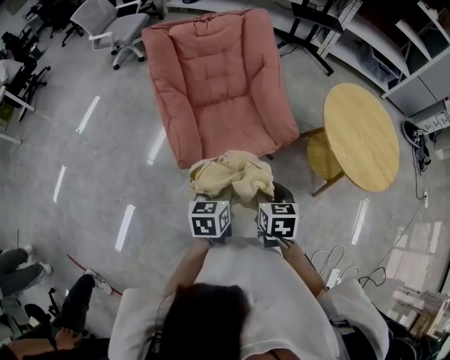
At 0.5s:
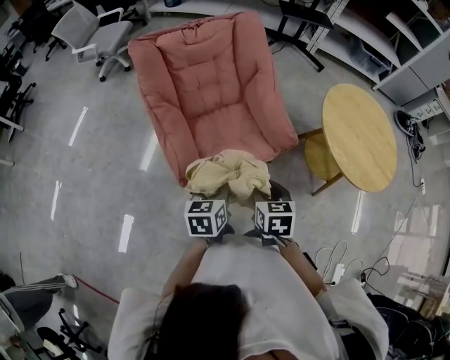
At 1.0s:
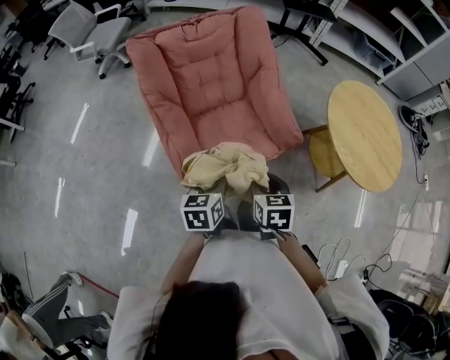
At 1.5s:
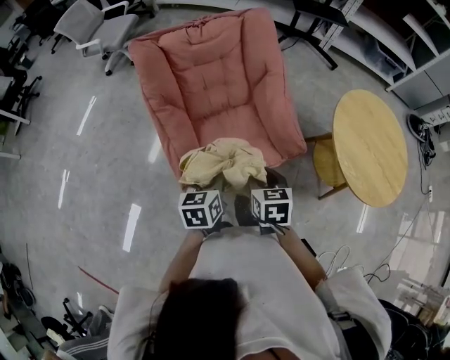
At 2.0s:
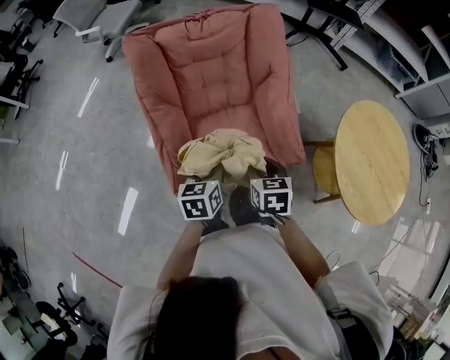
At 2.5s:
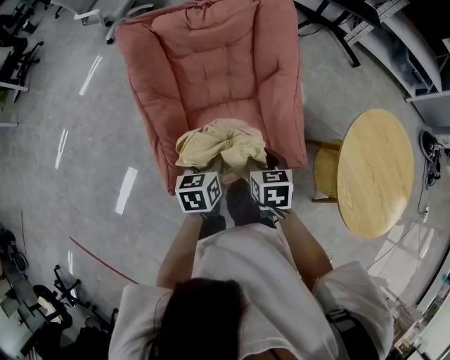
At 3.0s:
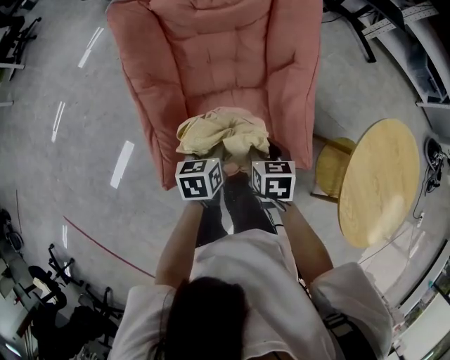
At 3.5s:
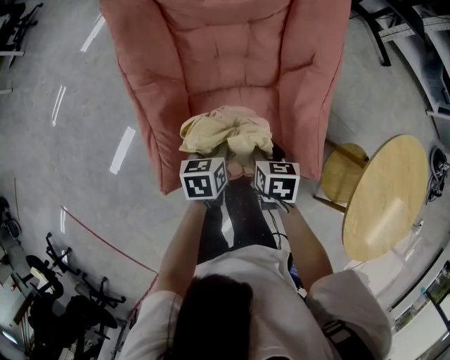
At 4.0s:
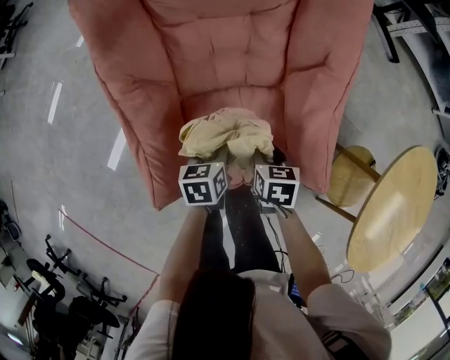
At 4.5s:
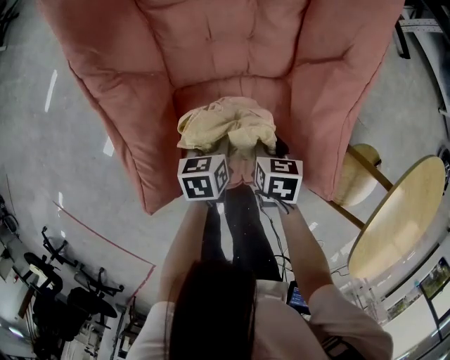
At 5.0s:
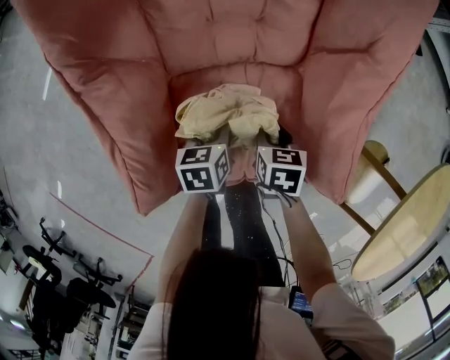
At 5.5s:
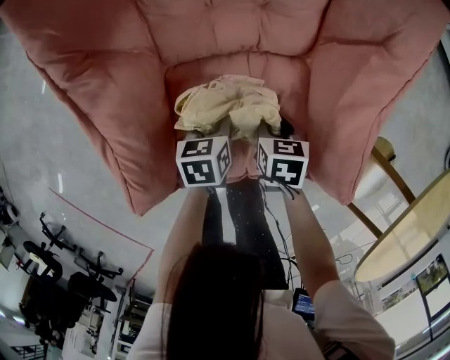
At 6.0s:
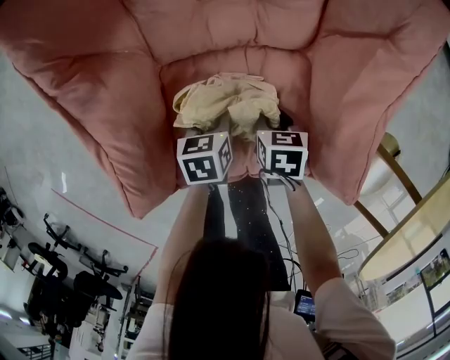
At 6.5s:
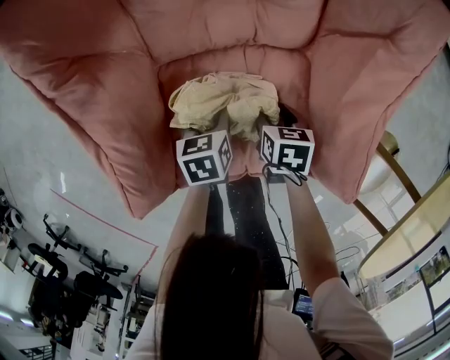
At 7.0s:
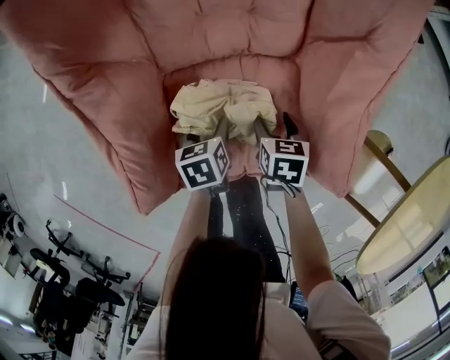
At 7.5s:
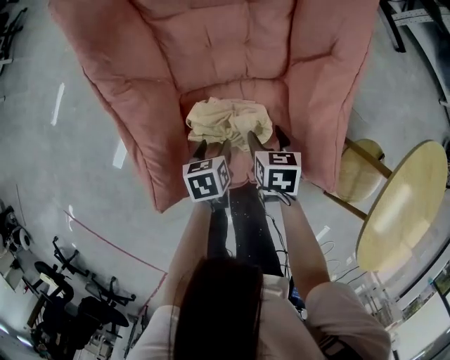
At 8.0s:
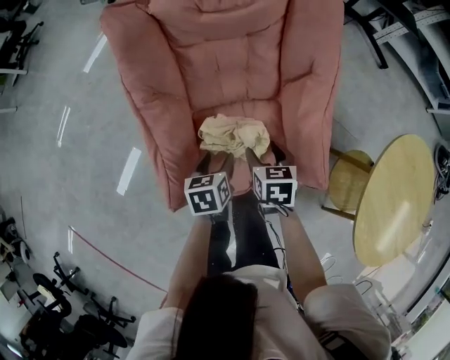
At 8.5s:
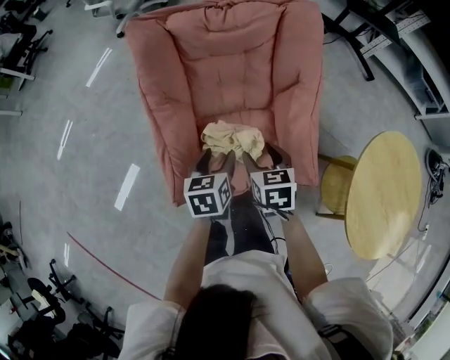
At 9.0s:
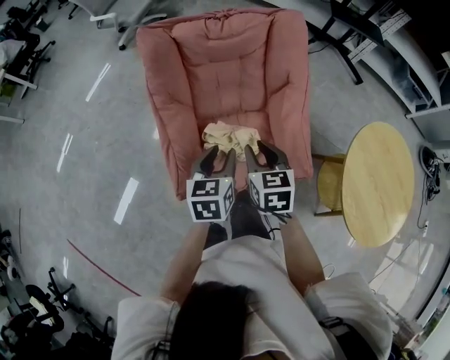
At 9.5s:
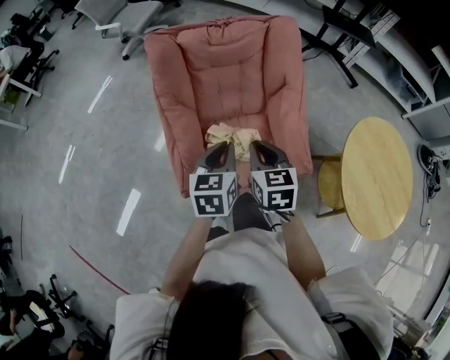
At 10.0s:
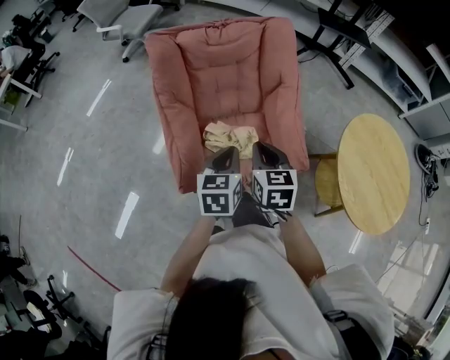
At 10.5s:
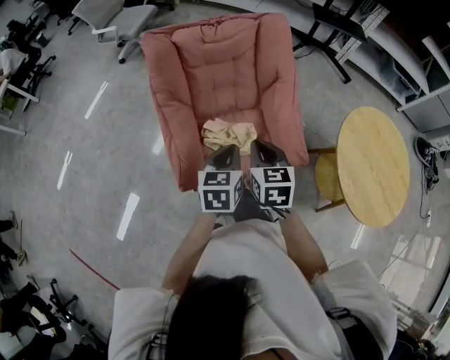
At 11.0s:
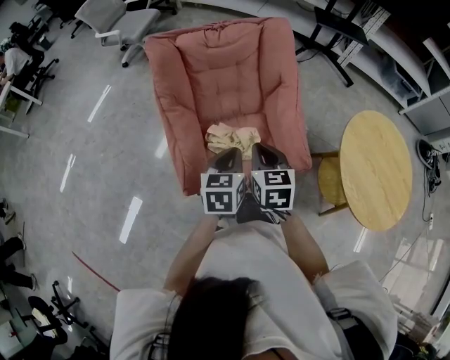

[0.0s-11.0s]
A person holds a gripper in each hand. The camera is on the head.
0.0s to 2.0s: The grippers both shift forward by approximately 25 cm.
2.0s to 3.5s: Both grippers travel together downward and forward, roughly 20 cm.
3.5s to 5.5s: The grippers both shift downward by some 25 cm.
5.5s to 7.5s: Both grippers travel together upward, some 10 cm. The right gripper opens. The left gripper opens.
7.5s to 9.0s: Both grippers move upward, about 30 cm. The left gripper turns by about 30 degrees, and closes. Meanwhile the right gripper turns by some 20 degrees, and closes.
9.0s to 11.0s: Both grippers travel together backward, approximately 5 cm. The left gripper closes. The right gripper closes.

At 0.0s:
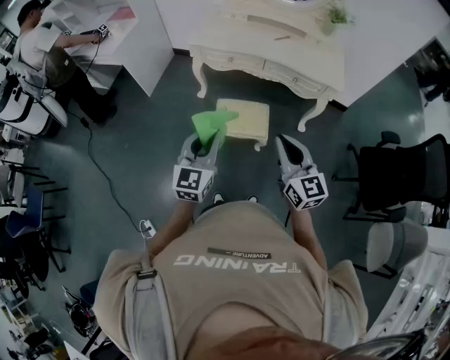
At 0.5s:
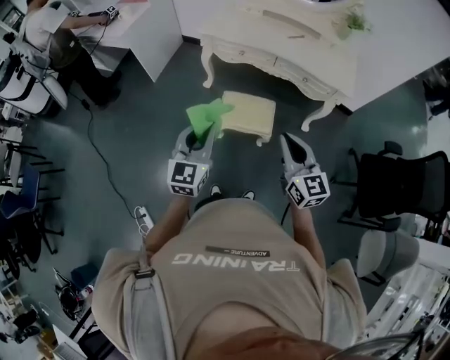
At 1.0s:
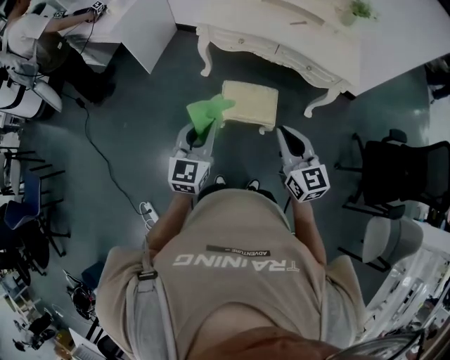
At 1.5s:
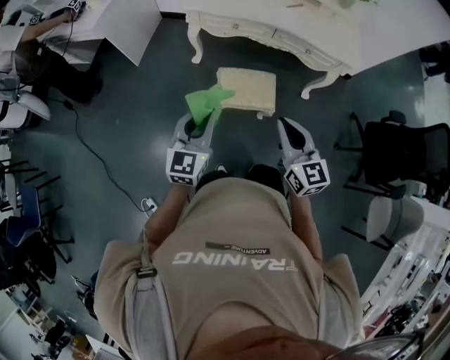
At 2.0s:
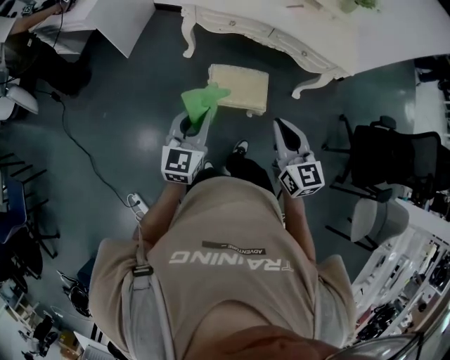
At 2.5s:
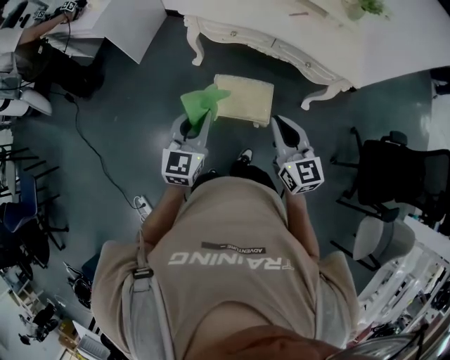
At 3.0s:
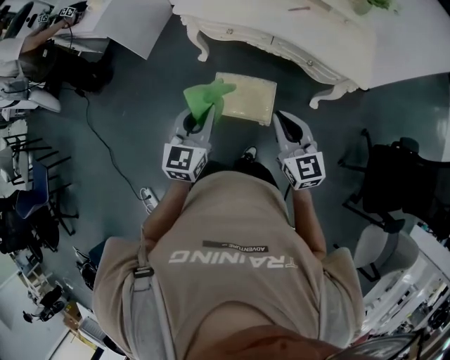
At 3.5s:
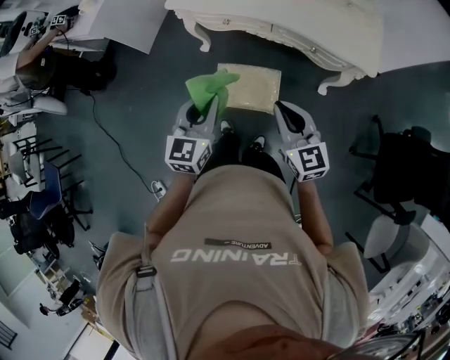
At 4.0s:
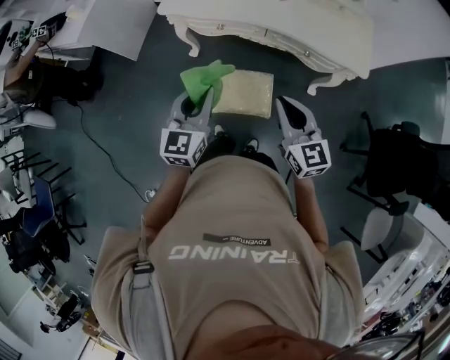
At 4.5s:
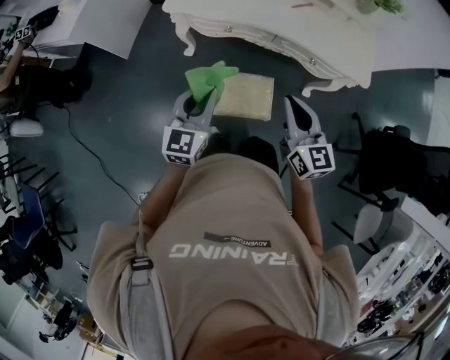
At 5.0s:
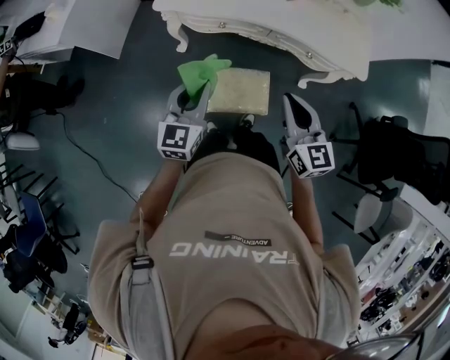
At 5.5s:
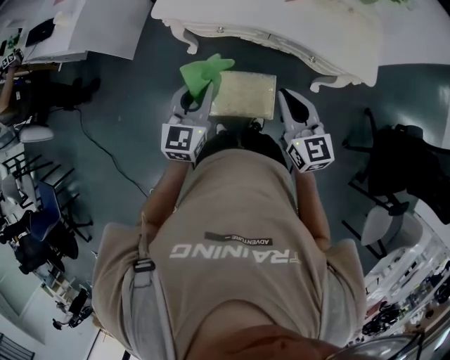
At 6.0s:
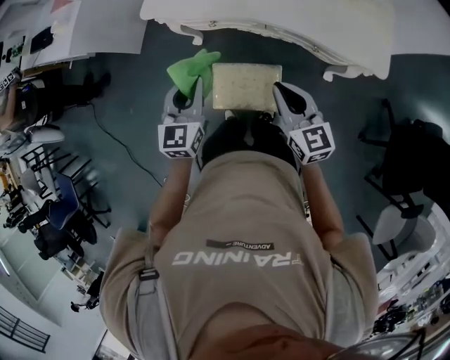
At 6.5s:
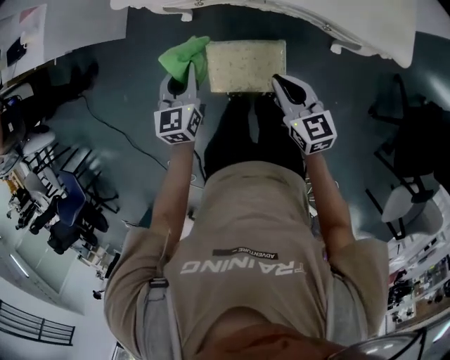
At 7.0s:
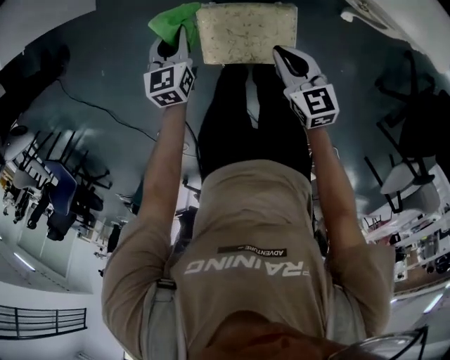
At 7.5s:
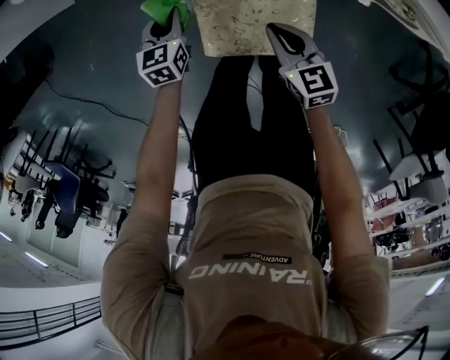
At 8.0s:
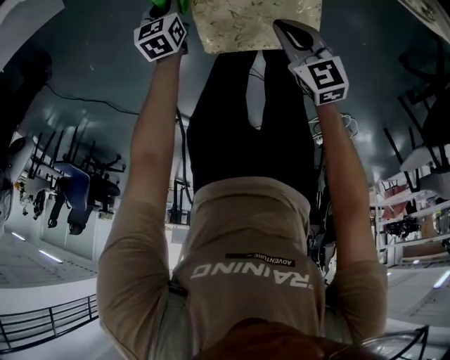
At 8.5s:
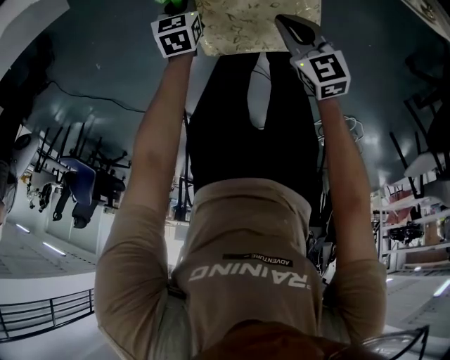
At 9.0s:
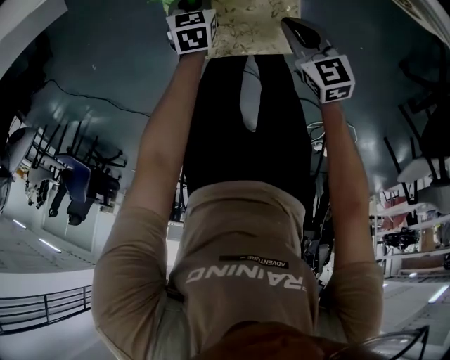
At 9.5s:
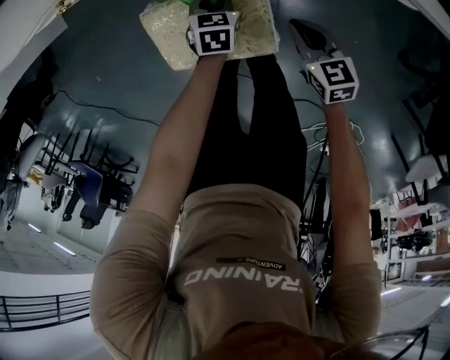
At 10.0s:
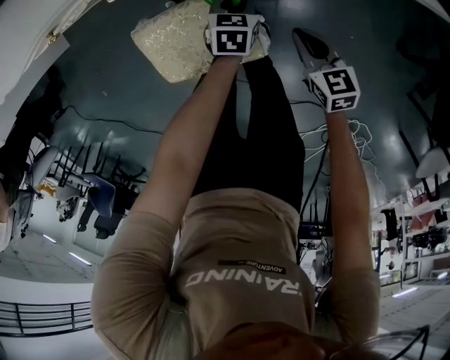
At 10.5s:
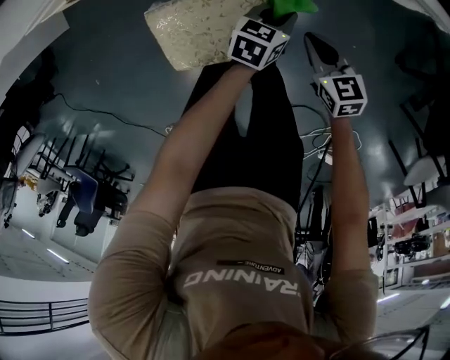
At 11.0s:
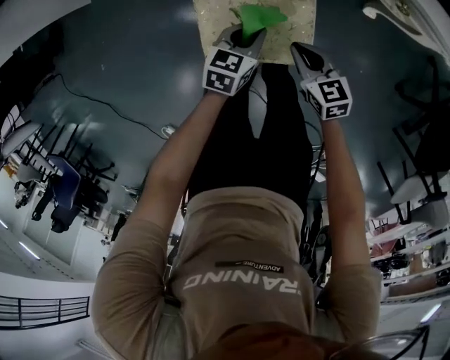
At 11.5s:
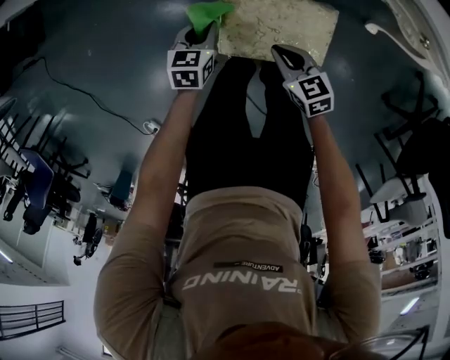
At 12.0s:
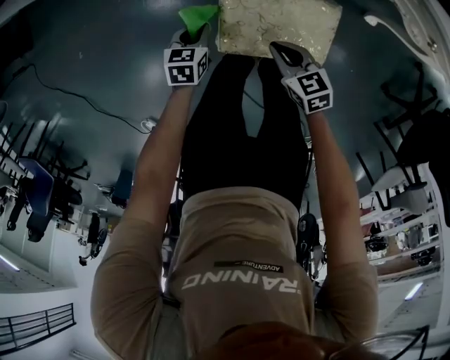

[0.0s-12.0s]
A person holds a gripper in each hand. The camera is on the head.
0.0s to 2.0s: The right gripper heads forward, to the left and downward, covering roughly 15 cm, while the left gripper heads forward, downward and to the left, covering approximately 15 cm.
2.0s to 4.0s: Both grippers move forward and to the right, roughly 25 cm.
4.0s to 6.0s: Both grippers travel together forward and downward, roughly 15 cm.
6.0s to 8.0s: Both grippers travel together downward, some 50 cm. The right gripper rotates about 30 degrees. Meanwhile the left gripper angles its fingers downward, by about 40 degrees.
8.0s to 10.0s: The right gripper travels to the right by some 25 cm. The left gripper moves to the right, roughly 40 cm, and changes its angle by roughly 20 degrees.
10.0s to 12.0s: The right gripper shifts by roughly 35 cm, and rotates roughly 30 degrees, while the left gripper reaches approximately 10 cm upward, then returns, and swivels roughly 20 degrees.

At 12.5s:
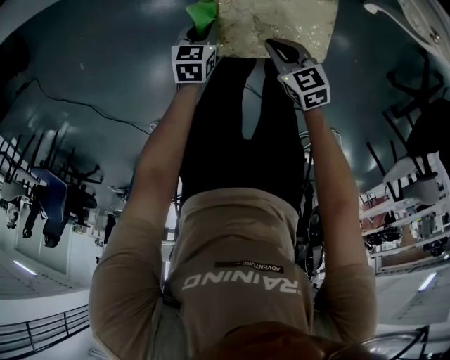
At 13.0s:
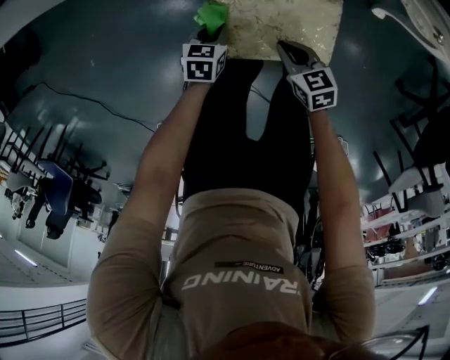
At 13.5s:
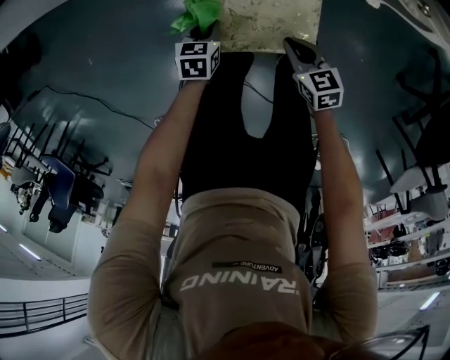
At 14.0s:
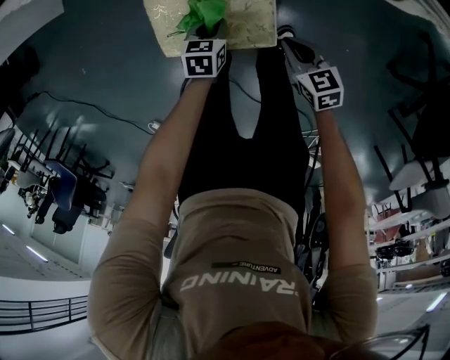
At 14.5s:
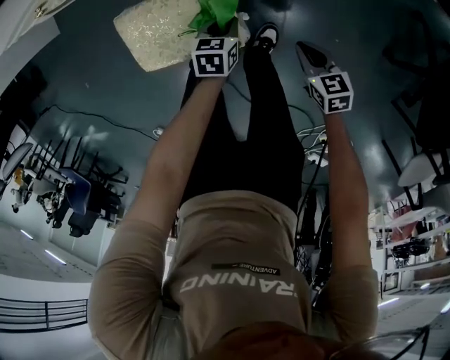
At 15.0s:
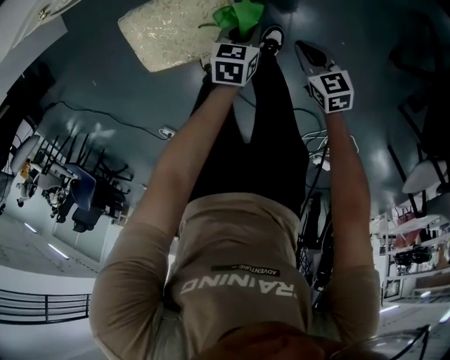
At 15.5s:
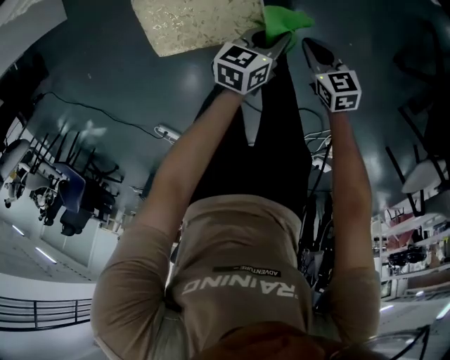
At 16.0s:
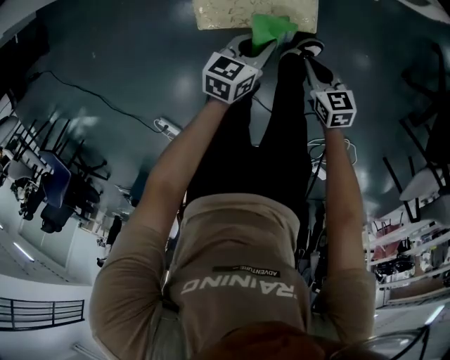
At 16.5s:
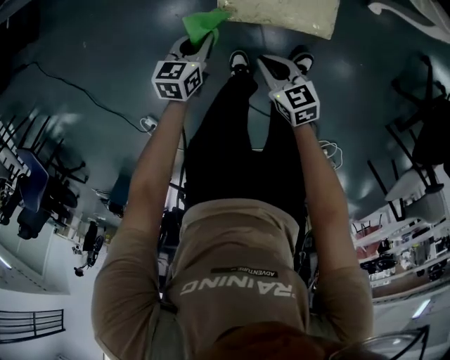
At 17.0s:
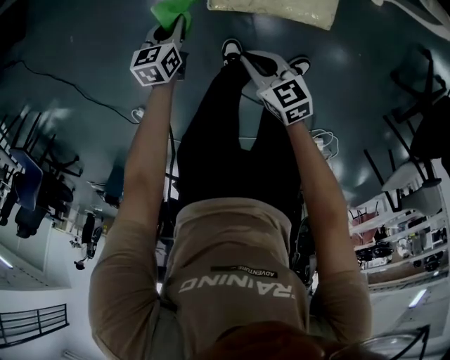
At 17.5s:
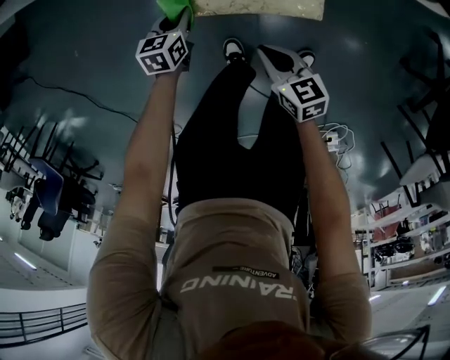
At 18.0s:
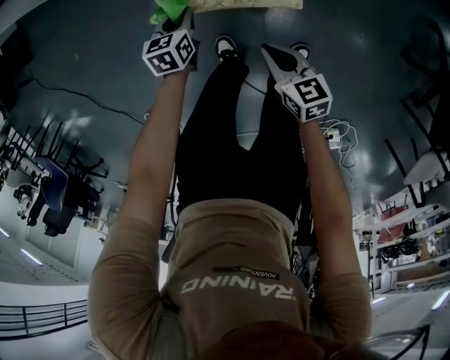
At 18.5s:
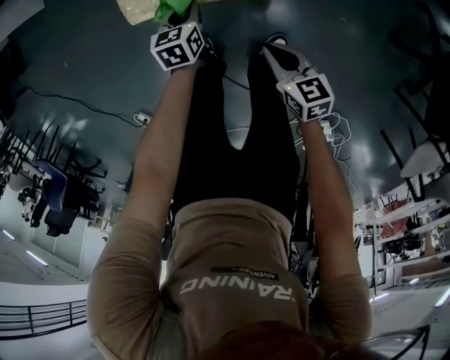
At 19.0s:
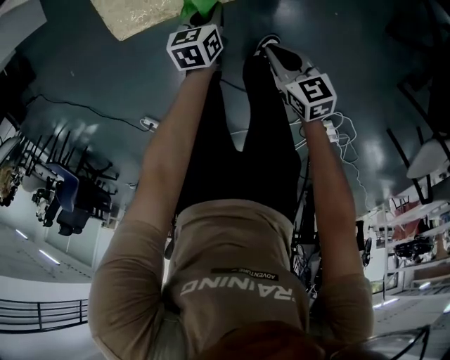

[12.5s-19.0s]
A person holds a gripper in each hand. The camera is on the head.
12.5s to 14.5s: Both grippers are carried to the right, about 40 cm.
14.5s to 17.0s: The pair of grippers is taken roughly 50 cm. The left gripper changes its angle by roughly 20 degrees. Meanwhile the right gripper changes its angle by about 20 degrees.
17.0s to 19.0s: The grippers both shift to the right by some 40 cm. The right gripper changes its angle by about 20 degrees.
